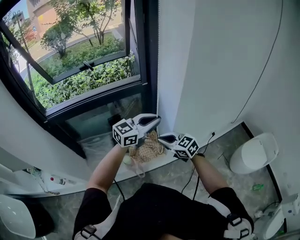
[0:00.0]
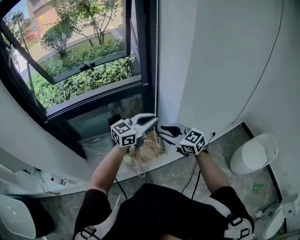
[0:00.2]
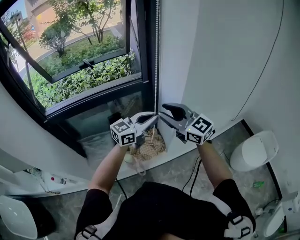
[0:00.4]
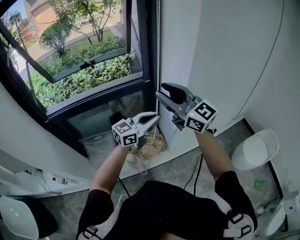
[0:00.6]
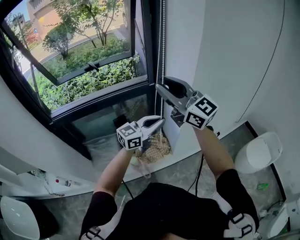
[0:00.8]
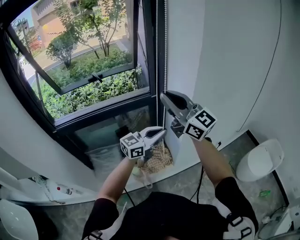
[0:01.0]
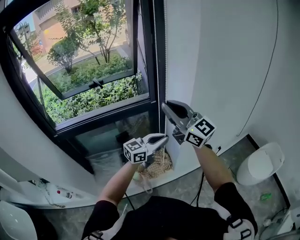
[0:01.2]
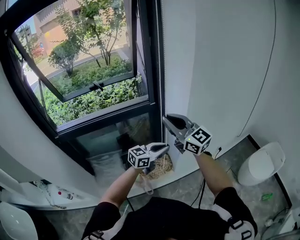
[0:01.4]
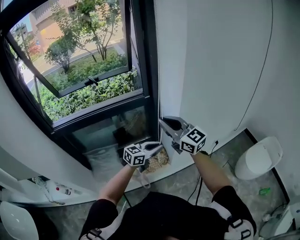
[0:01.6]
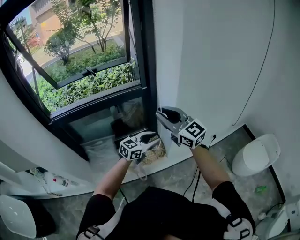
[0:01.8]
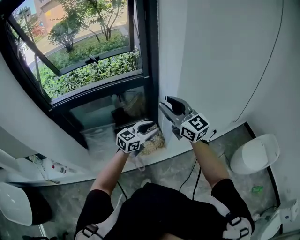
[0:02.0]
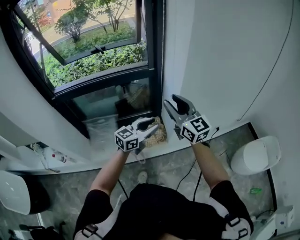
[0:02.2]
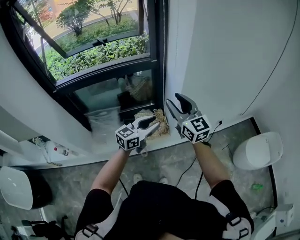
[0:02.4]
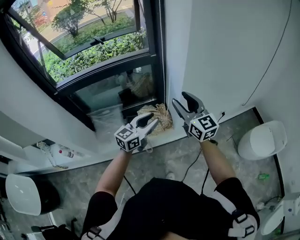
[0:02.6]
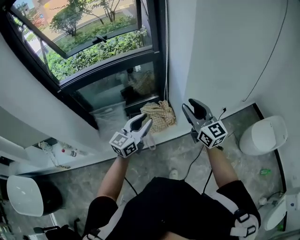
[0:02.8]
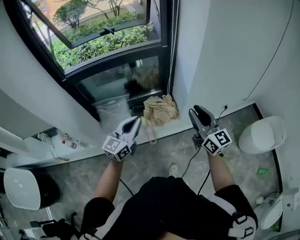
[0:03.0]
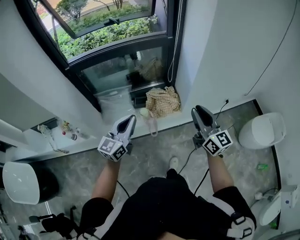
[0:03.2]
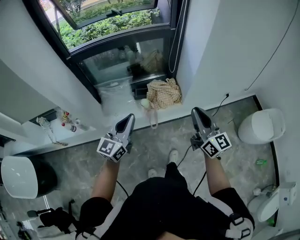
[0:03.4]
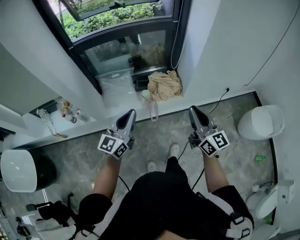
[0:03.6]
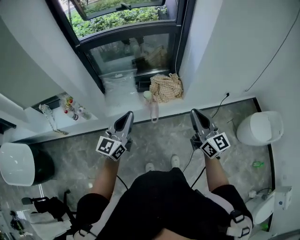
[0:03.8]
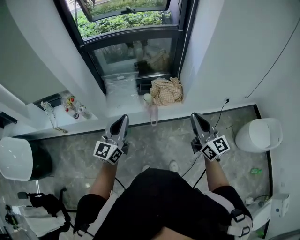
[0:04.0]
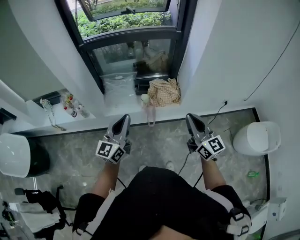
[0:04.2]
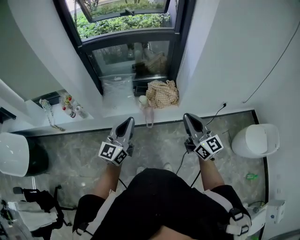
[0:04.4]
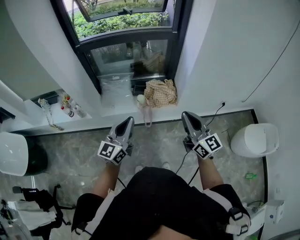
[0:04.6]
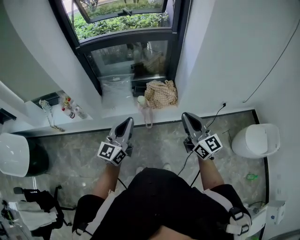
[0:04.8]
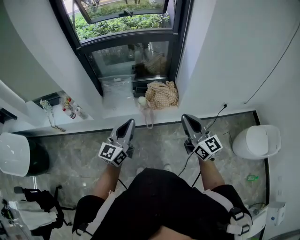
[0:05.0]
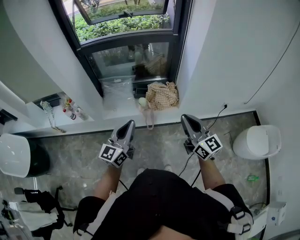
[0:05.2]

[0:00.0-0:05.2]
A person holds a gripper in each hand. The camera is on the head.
0:00.0 to 0:01.8: The left gripper shifts some 10 cm downward, and opens up, while the right gripper is displaced upward by some 20 cm, and tips its fingers upward by roughly 30 degrees.
0:01.8 to 0:03.4: The left gripper goes roughly 35 cm backward and to the left, rotates roughly 40 degrees, and closes. The right gripper heads backward and downward, covering some 25 cm, rotates some 30 degrees, and opens, then closes once more.
0:03.4 to 0:05.2: The left gripper travels backward by approximately 10 cm.

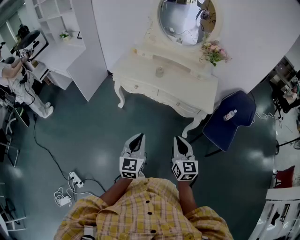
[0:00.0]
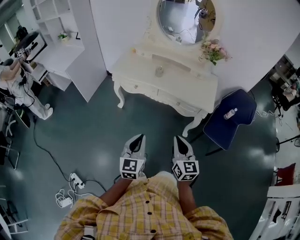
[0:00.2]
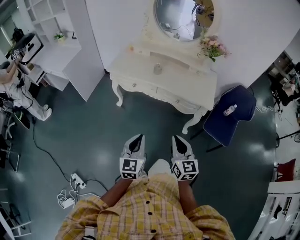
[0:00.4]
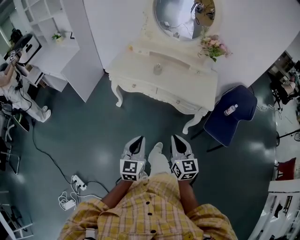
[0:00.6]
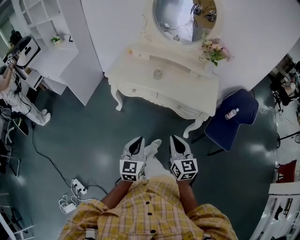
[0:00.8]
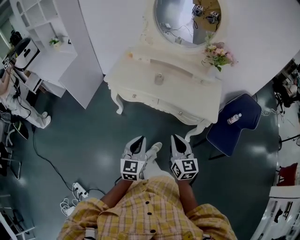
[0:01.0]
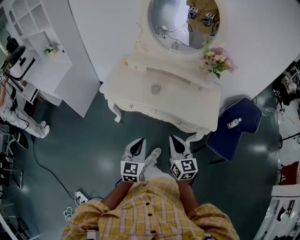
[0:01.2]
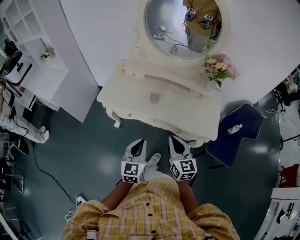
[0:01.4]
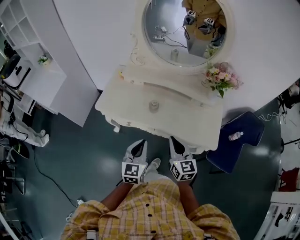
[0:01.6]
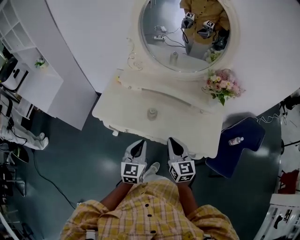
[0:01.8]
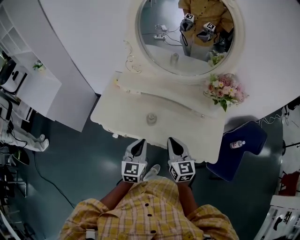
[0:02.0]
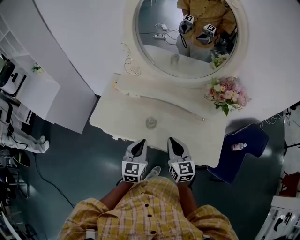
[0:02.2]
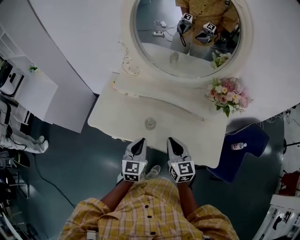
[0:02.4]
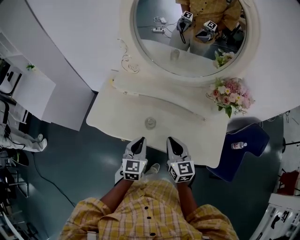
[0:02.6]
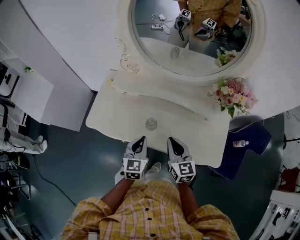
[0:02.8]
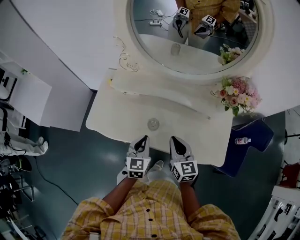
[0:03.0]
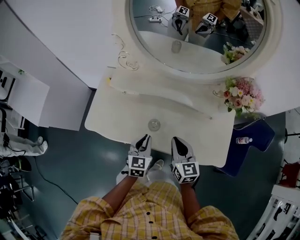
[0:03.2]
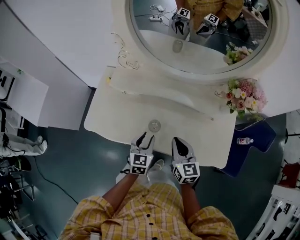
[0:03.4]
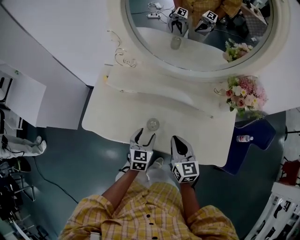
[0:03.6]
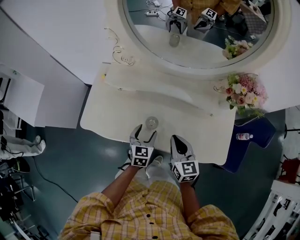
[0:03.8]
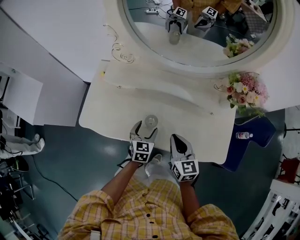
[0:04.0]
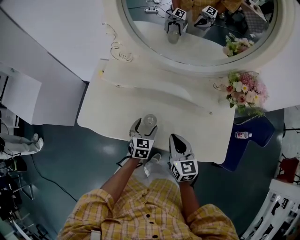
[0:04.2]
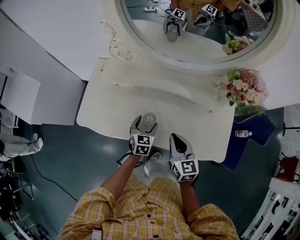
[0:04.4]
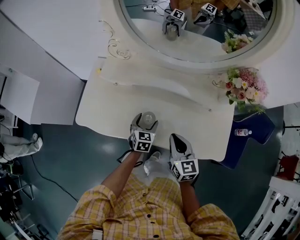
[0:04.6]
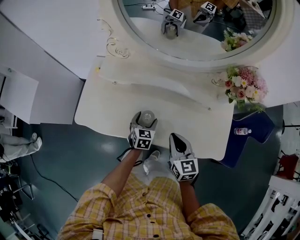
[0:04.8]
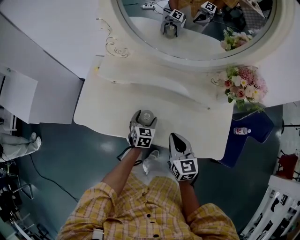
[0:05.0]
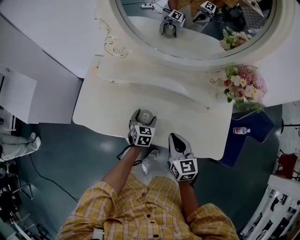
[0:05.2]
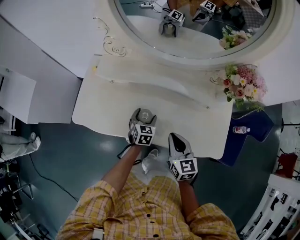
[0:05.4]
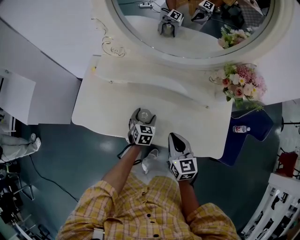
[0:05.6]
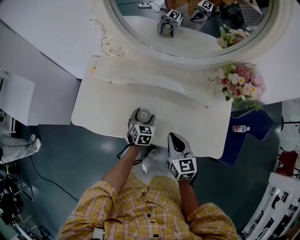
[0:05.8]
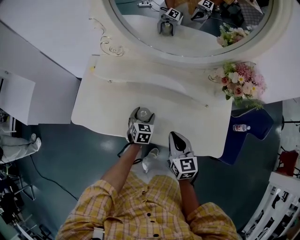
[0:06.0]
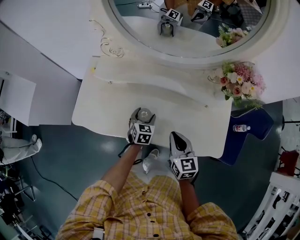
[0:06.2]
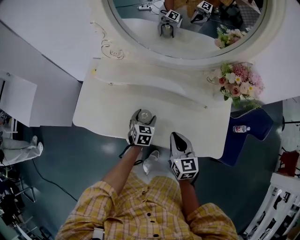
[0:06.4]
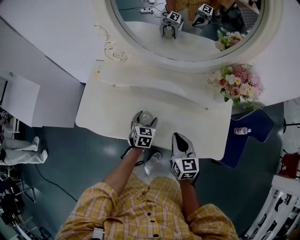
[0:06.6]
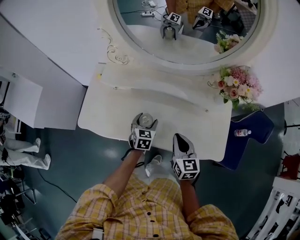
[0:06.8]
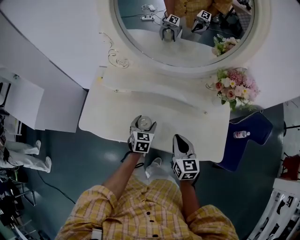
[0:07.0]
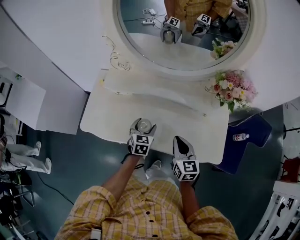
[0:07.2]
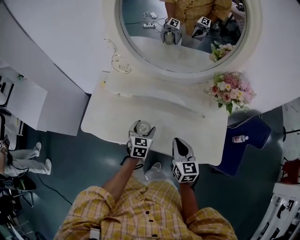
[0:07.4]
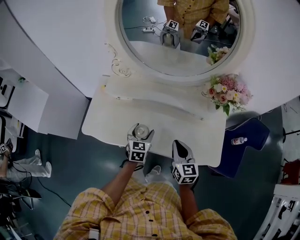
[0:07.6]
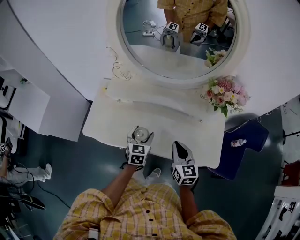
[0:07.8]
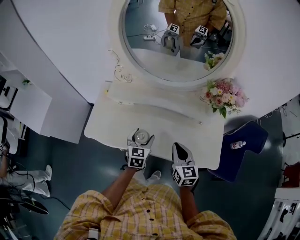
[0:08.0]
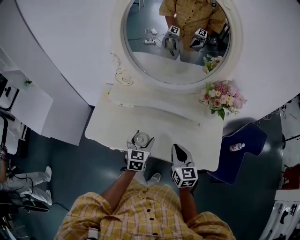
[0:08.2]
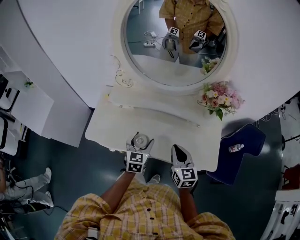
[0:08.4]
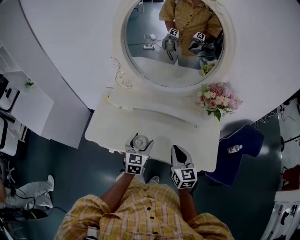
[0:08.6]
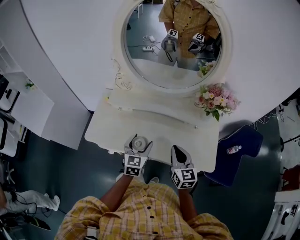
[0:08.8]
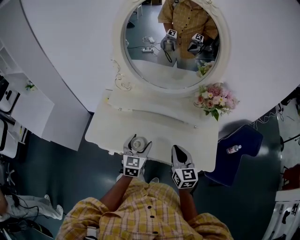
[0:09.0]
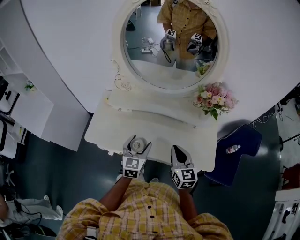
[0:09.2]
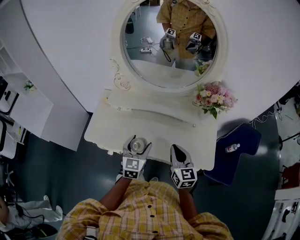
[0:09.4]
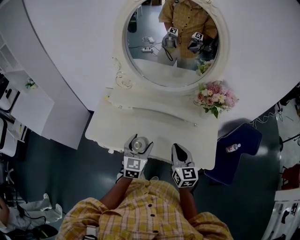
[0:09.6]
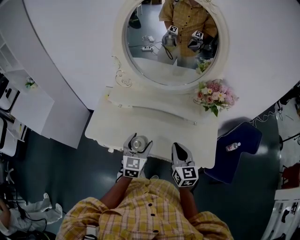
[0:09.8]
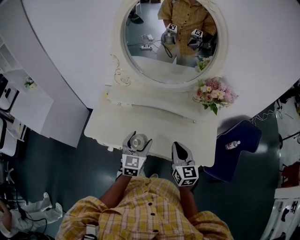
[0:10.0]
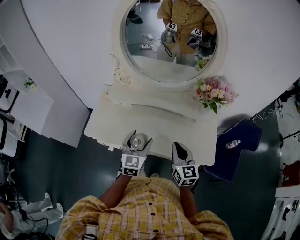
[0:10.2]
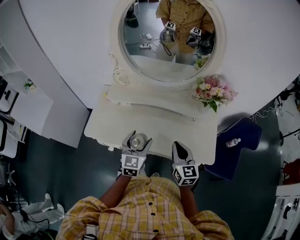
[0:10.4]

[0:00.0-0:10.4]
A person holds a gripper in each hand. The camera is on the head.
0:00.0 to 0:01.4: The grippers both shift forward by about 25 cm.
0:01.4 to 0:03.0: The grippers both shift forward by about 25 cm.
0:03.0 to 0:04.4: The left gripper shifts roughly 15 cm downward and forward, and opens its fingers.
0:04.4 to 0:06.0: There are only small adjustments of the grippers.
0:06.0 to 0:07.4: The left gripper travels upward by about 10 cm.
0:07.4 to 0:09.0: The right gripper travels upward by some 10 cm; the left gripper travels upward and backward by roughly 15 cm.
0:09.0 to 0:10.4: The grippers move only a little.

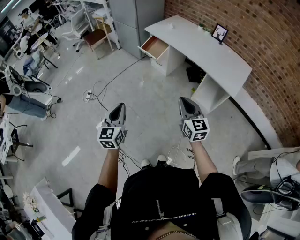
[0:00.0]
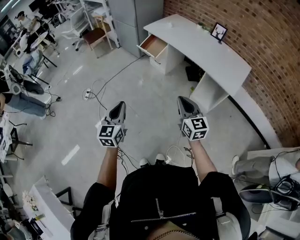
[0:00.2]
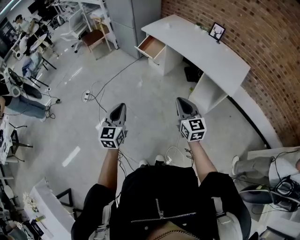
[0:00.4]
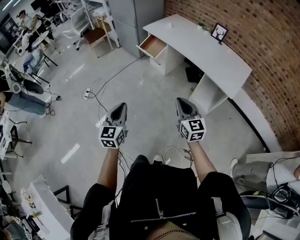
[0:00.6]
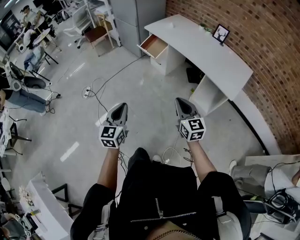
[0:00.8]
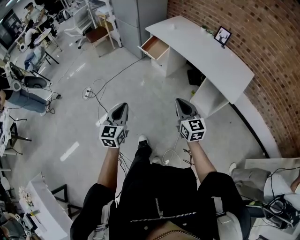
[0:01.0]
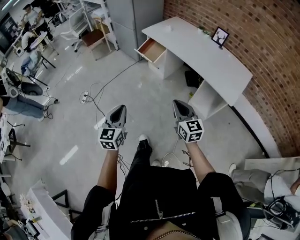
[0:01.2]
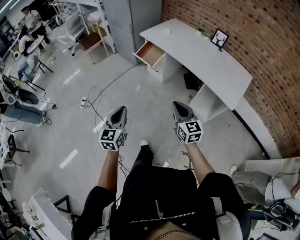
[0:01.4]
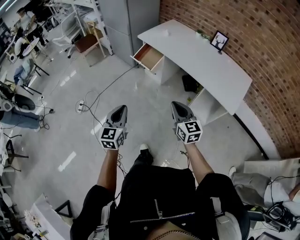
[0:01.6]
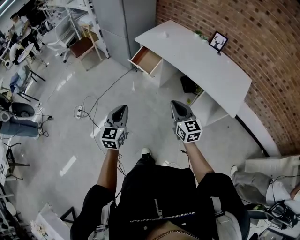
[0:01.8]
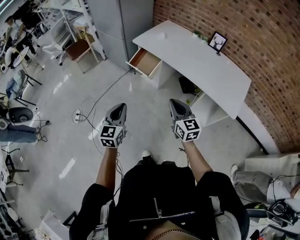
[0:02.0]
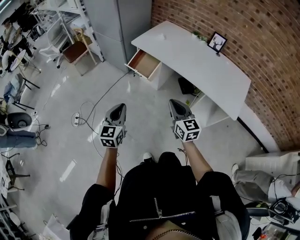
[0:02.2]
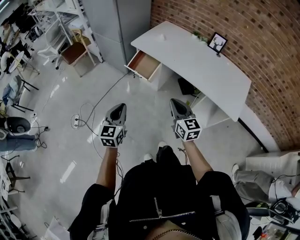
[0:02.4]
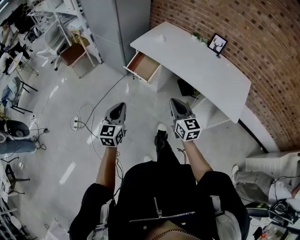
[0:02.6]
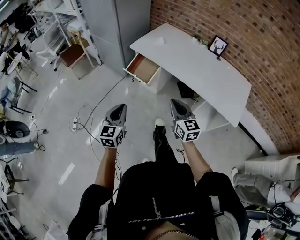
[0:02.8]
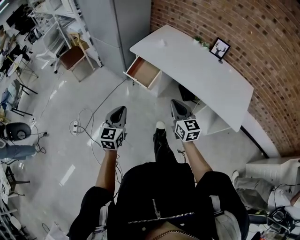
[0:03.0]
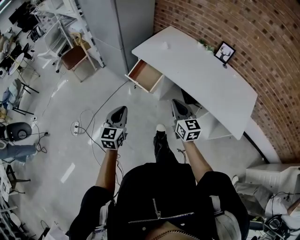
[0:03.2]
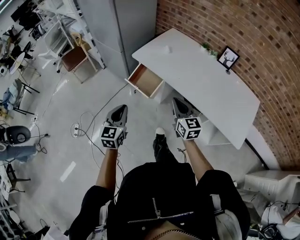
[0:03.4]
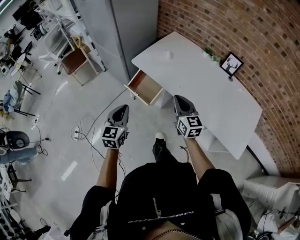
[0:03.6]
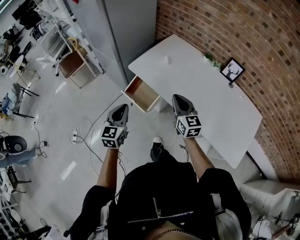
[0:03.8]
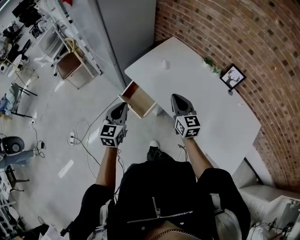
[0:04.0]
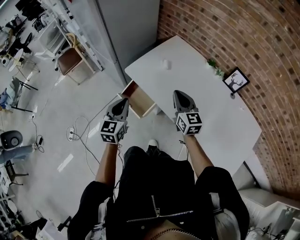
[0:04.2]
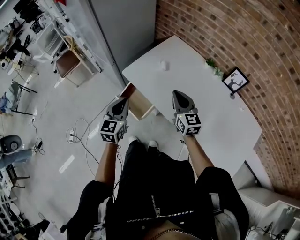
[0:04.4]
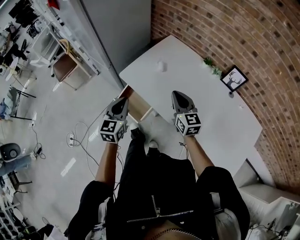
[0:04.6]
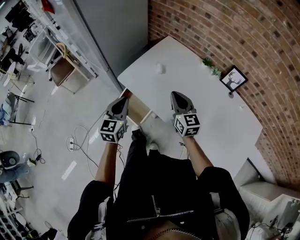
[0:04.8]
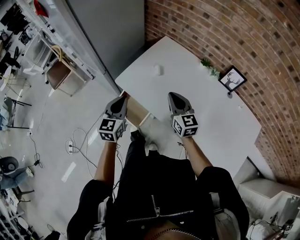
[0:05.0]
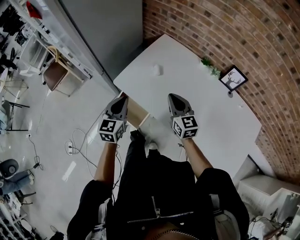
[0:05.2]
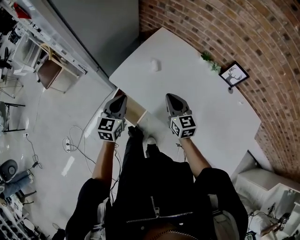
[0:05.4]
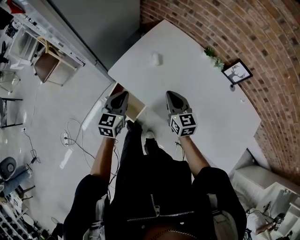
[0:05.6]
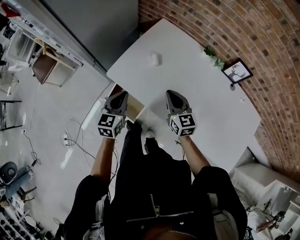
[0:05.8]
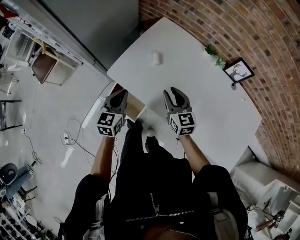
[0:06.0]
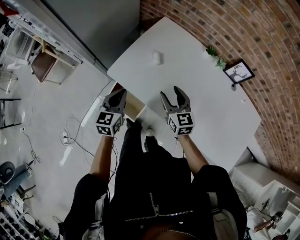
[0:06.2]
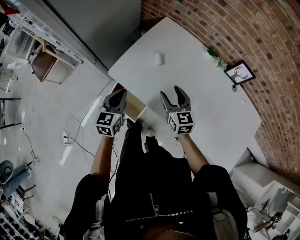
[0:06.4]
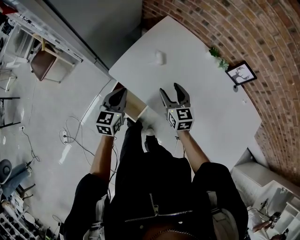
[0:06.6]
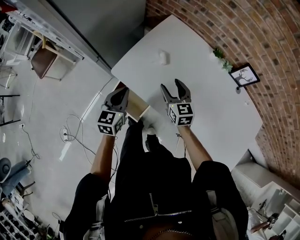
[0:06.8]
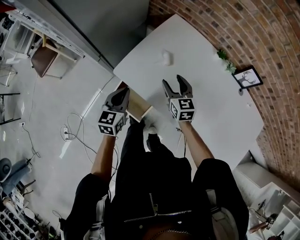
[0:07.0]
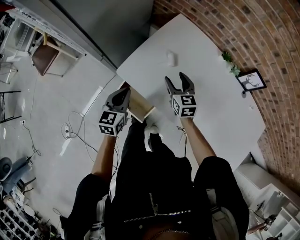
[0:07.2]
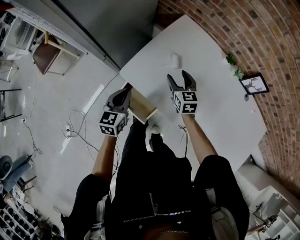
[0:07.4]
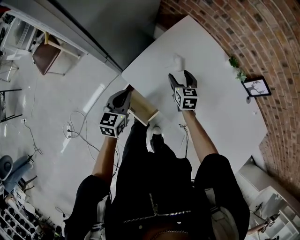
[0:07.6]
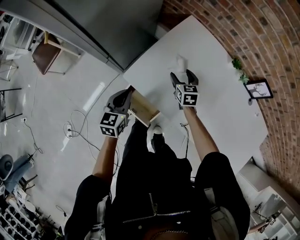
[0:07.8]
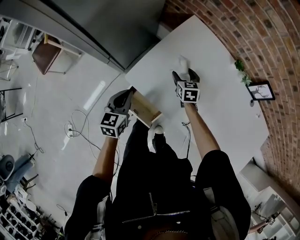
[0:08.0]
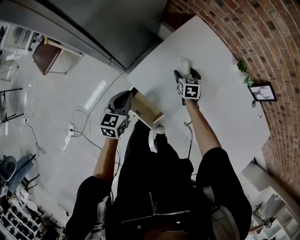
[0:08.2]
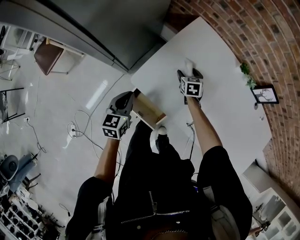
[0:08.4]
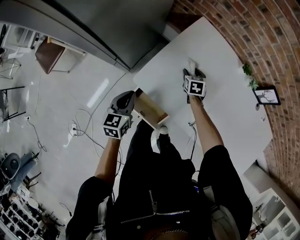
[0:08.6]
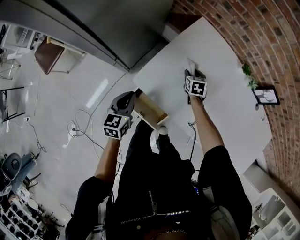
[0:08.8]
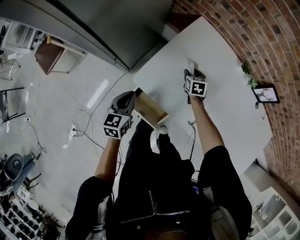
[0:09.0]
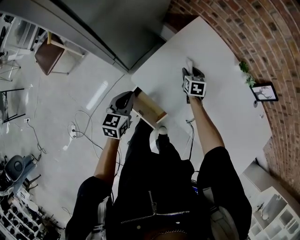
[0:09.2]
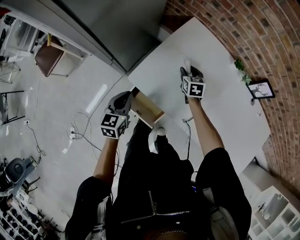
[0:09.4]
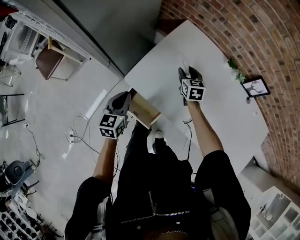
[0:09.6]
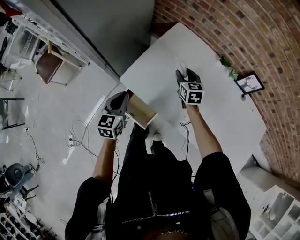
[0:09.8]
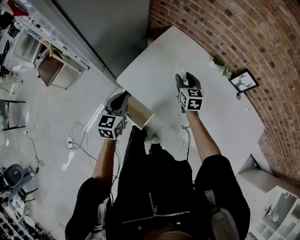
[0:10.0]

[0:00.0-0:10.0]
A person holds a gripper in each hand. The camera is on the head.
0:00.0 to 0:01.4: The right gripper shifts roughly 10 cm forward. Meanwhile the left gripper is displaced forward and to the right by some 10 cm.
0:01.4 to 0:02.8: The grippers both shift forward by some 25 cm.
0:02.8 to 0:04.2: The grippers both shift forward by about 40 cm.
0:04.2 to 0:05.8: The grippers both shift forward and downward by some 15 cm.
0:05.8 to 0:07.2: The right gripper heads forward, downward and to the left, covering approximately 15 cm, and opens its fingers; the left gripper moves to the left, some 5 cm.
0:07.2 to 0:08.6: The right gripper heads downward and forward, covering some 20 cm, and turns by about 30 degrees; the left gripper is displaced to the left and downward by about 10 cm.
0:08.6 to 0:10.0: The right gripper travels upward and backward by some 20 cm, and changes its angle by some 20 degrees. The left gripper heads upward, to the right and backward, covering some 15 cm.
